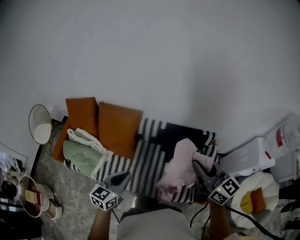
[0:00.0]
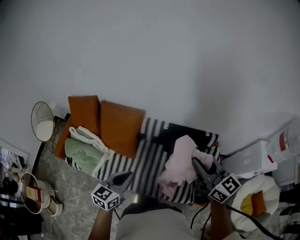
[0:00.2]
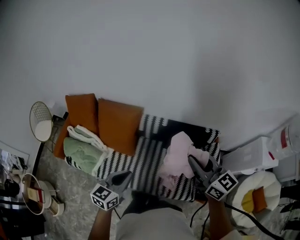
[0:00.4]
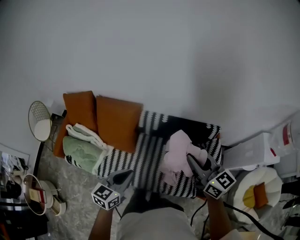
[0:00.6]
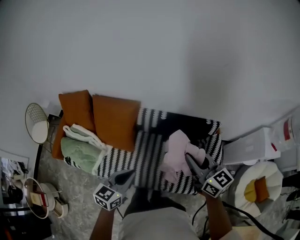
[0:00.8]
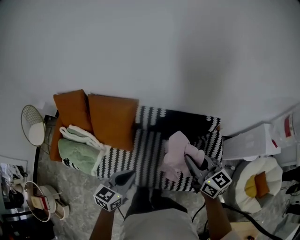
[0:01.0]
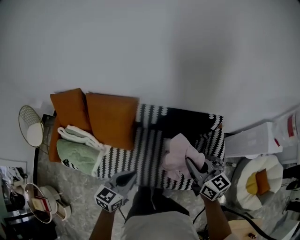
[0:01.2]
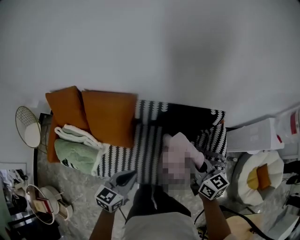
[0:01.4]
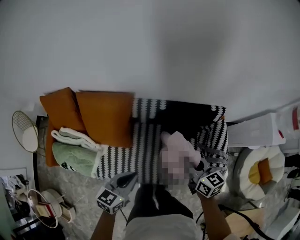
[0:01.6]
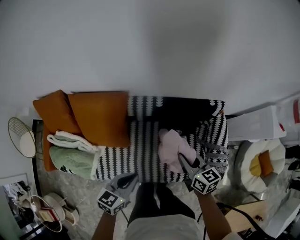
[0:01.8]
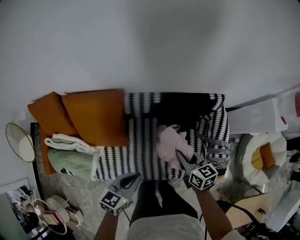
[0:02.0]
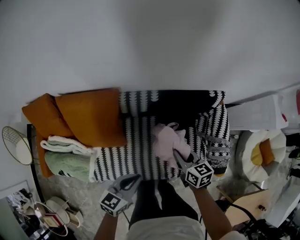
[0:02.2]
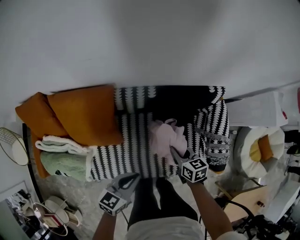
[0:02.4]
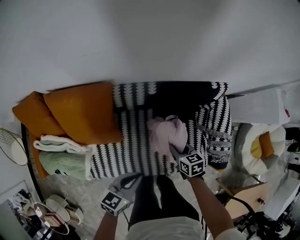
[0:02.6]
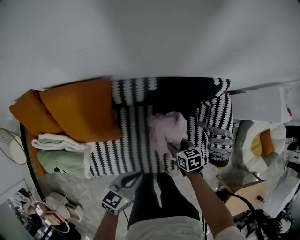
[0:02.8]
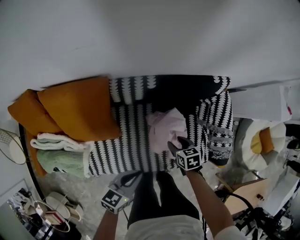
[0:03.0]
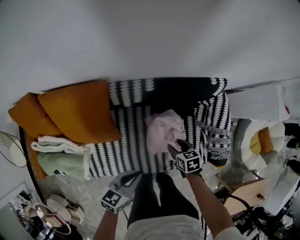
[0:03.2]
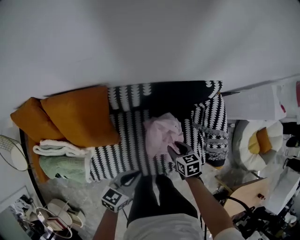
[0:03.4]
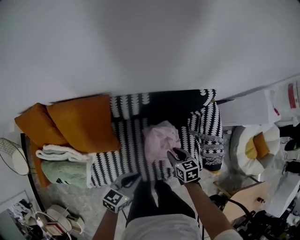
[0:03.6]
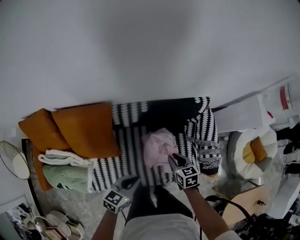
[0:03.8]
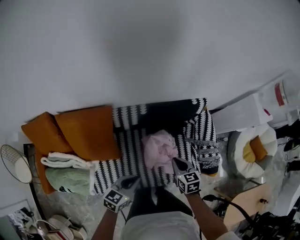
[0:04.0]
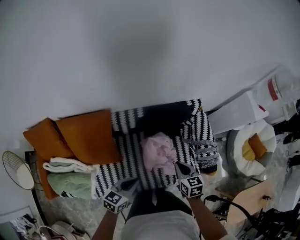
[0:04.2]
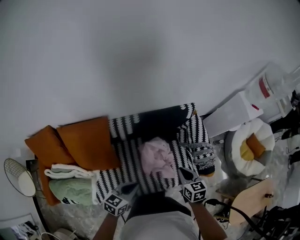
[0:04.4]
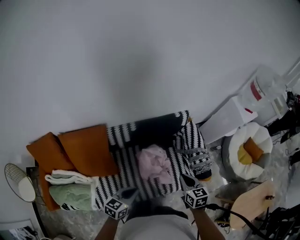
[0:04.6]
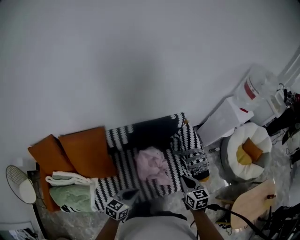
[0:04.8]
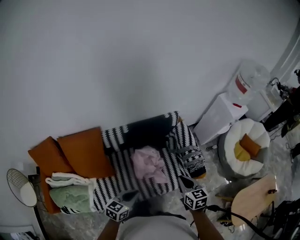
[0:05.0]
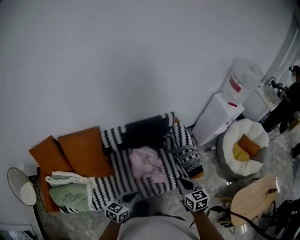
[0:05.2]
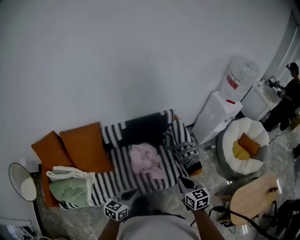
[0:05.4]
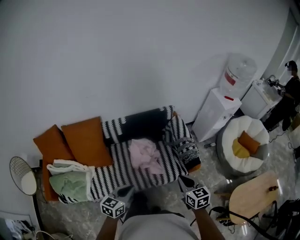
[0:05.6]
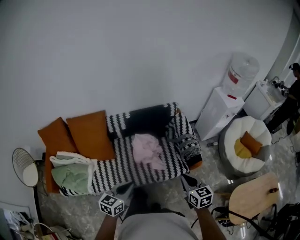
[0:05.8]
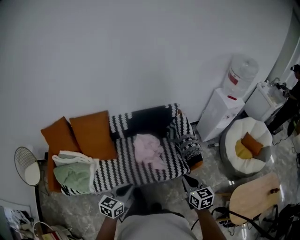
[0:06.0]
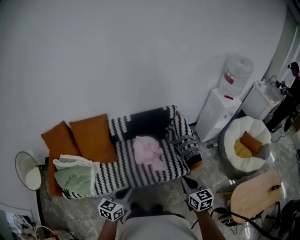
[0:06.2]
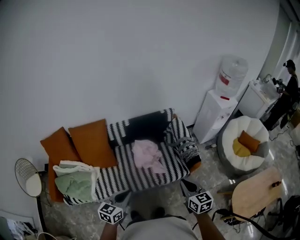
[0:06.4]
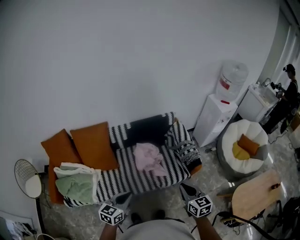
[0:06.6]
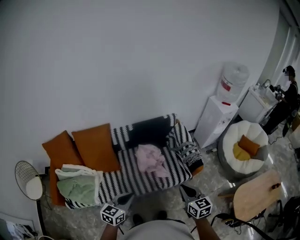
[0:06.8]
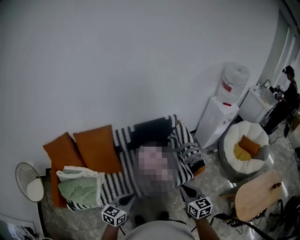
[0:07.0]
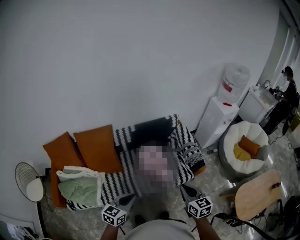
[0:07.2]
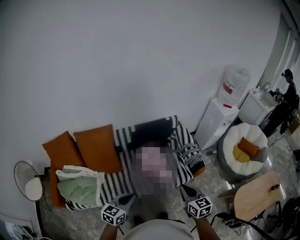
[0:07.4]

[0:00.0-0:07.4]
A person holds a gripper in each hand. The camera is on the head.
0.0 to 1.4 s: The left gripper moves forward and downward, about 15 cm. The right gripper travels downward and forward by some 25 cm, and rotates roughly 30 degrees.
1.4 to 3.0 s: The left gripper heads downward, covering roughly 20 cm. The right gripper travels downward by some 40 cm, tips its fingers downward by about 40 degrees, and opens.
3.0 to 4.4 s: The right gripper heads upward, covering about 30 cm, turns by about 30 degrees, and closes. The left gripper travels upward and backward by some 15 cm.
4.4 to 6.0 s: Both grippers move backward, to the right and upward, some 40 cm.
6.0 to 7.4 s: Both grippers move to the left, approximately 10 cm.

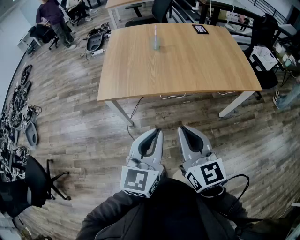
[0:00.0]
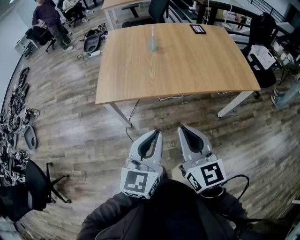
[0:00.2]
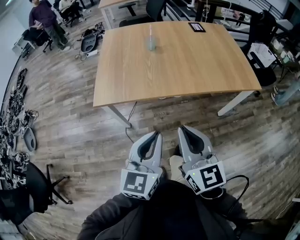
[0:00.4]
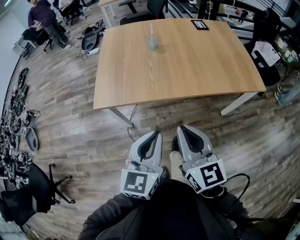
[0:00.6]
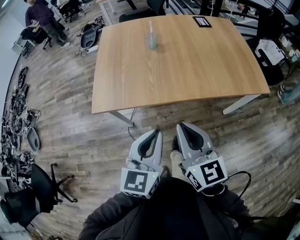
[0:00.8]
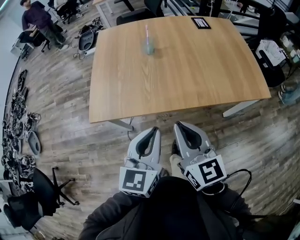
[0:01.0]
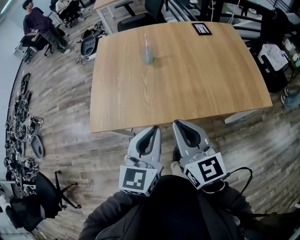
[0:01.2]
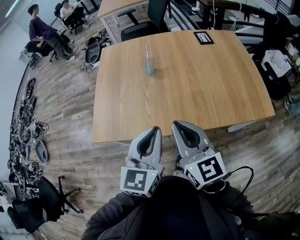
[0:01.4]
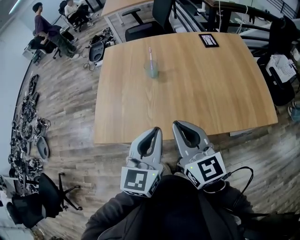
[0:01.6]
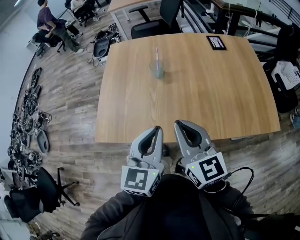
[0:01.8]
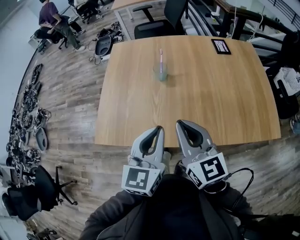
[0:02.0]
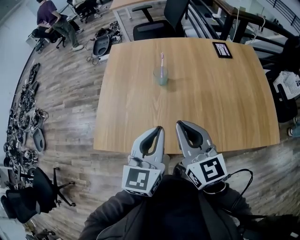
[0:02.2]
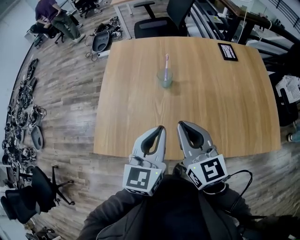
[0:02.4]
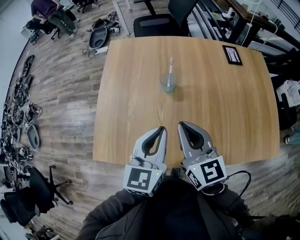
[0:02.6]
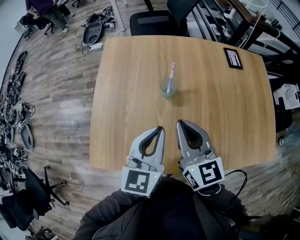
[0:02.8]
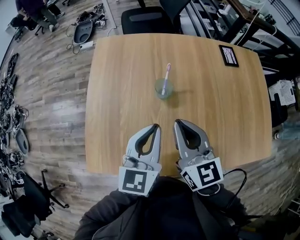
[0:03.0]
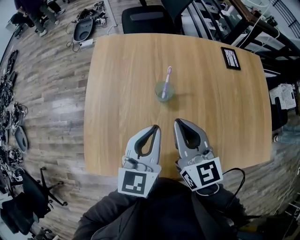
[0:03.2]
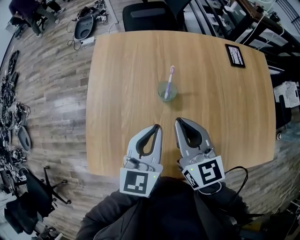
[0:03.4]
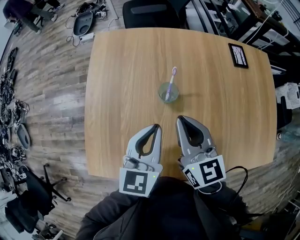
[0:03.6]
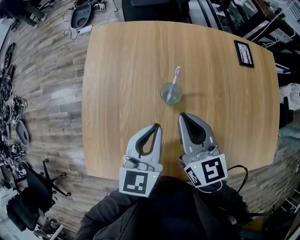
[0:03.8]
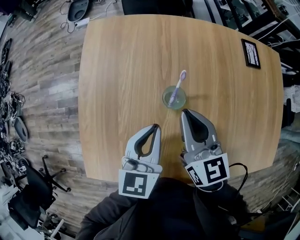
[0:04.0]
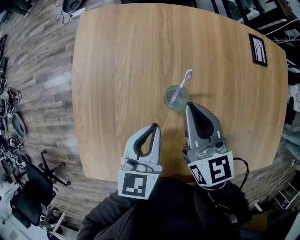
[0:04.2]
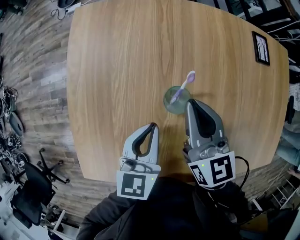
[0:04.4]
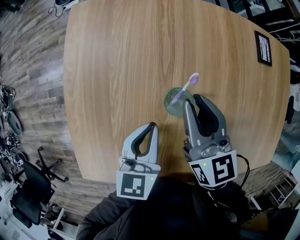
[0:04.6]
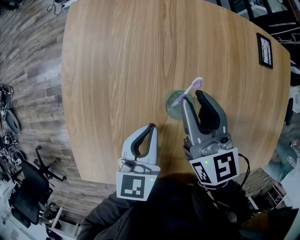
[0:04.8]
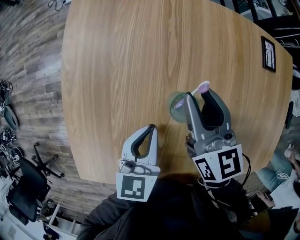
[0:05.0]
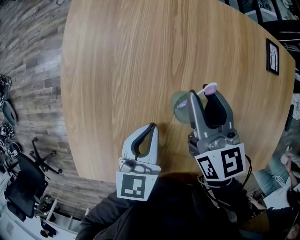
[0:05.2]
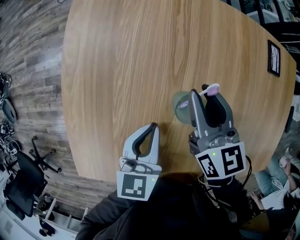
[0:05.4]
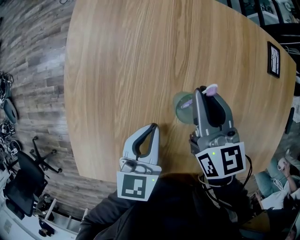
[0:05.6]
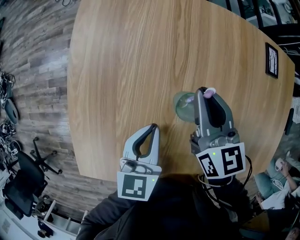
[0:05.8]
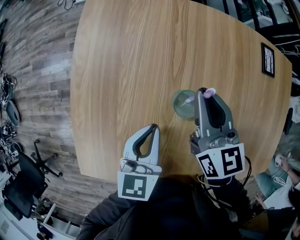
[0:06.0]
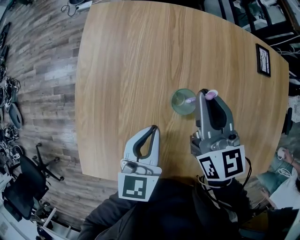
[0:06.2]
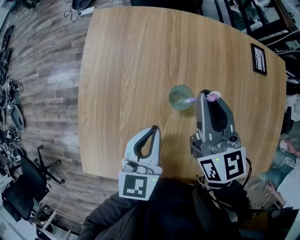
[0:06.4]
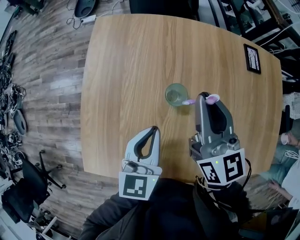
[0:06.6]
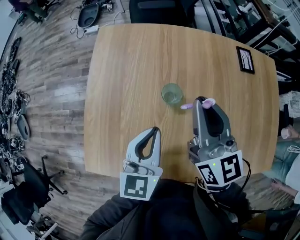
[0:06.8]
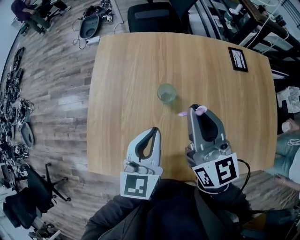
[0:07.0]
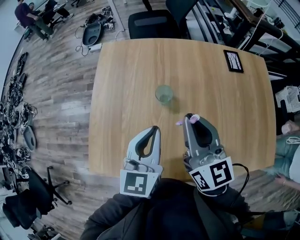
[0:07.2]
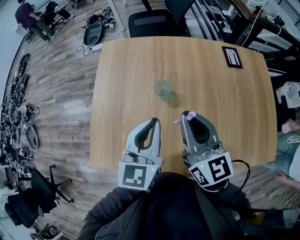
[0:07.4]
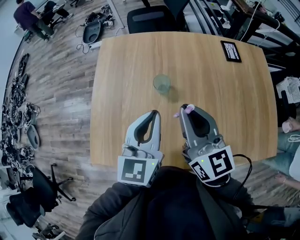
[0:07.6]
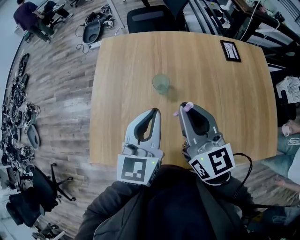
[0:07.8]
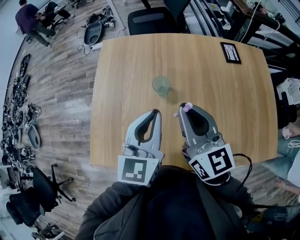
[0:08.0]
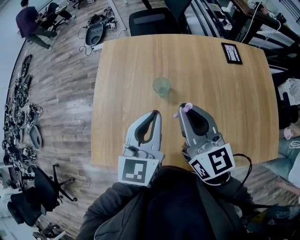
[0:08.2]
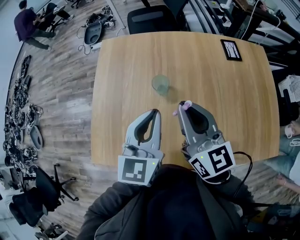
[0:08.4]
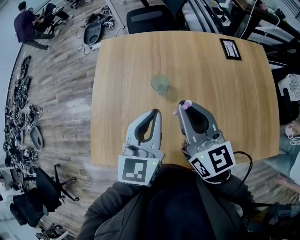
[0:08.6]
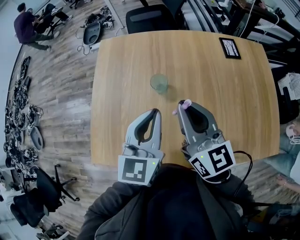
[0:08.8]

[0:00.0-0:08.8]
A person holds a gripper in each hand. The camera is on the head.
0.0 to 1.4 s: The grippers both shift forward by approximately 25 cm.
1.4 to 3.0 s: The grippers both shift forward by about 25 cm.
3.0 to 4.4 s: The right gripper shifts roughly 20 cm forward and downward. Meanwhile the left gripper heads downward and forward, covering about 15 cm.
4.4 to 5.8 s: The right gripper changes place by some 5 cm, and opens and closes again.
5.8 to 7.4 s: The right gripper heads backward and upward, covering roughly 25 cm, and turns by roughly 20 degrees, while the left gripper moves upward and backward, roughly 20 cm, and rotates approximately 20 degrees.
7.4 to 8.8 s: The grippers make only small movements.

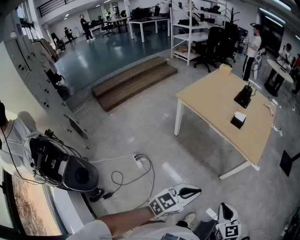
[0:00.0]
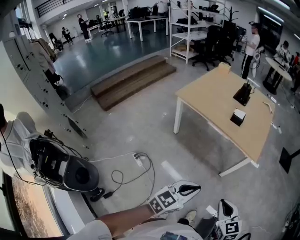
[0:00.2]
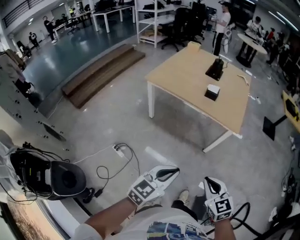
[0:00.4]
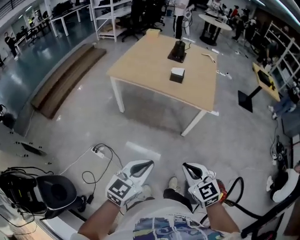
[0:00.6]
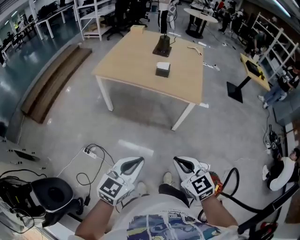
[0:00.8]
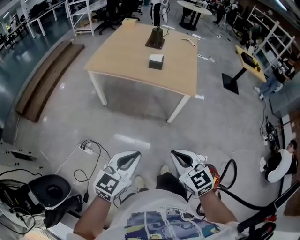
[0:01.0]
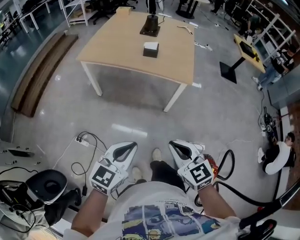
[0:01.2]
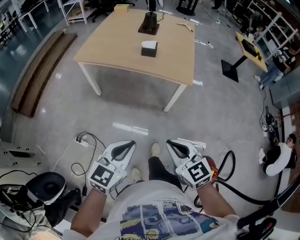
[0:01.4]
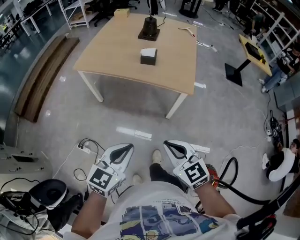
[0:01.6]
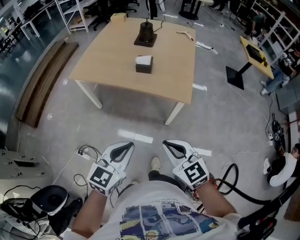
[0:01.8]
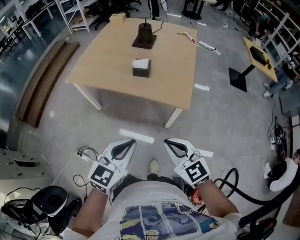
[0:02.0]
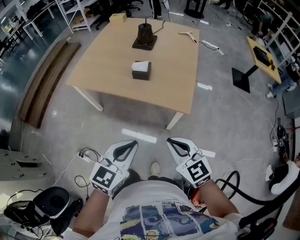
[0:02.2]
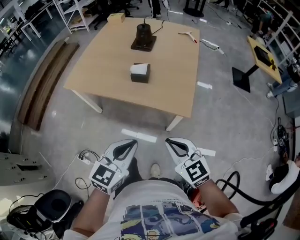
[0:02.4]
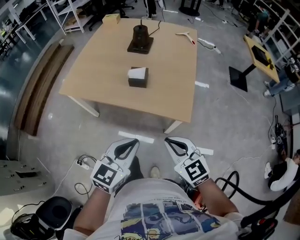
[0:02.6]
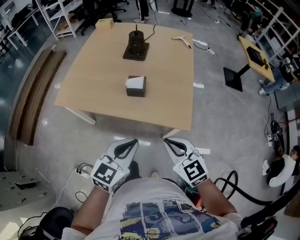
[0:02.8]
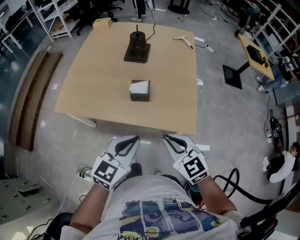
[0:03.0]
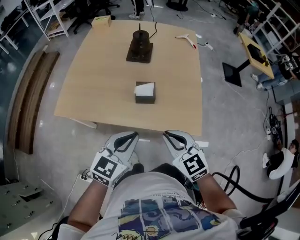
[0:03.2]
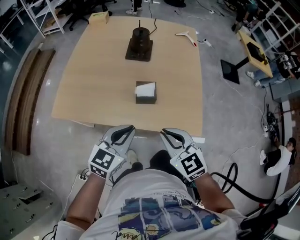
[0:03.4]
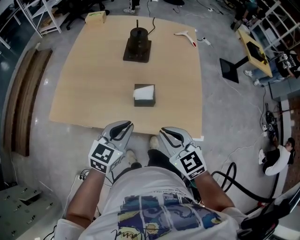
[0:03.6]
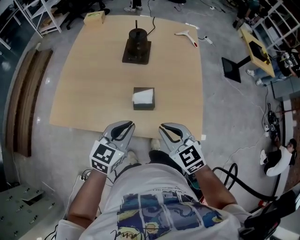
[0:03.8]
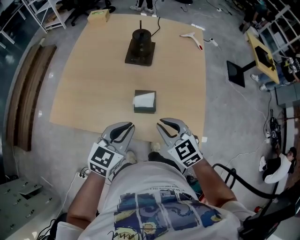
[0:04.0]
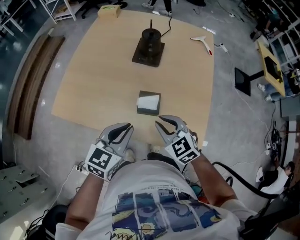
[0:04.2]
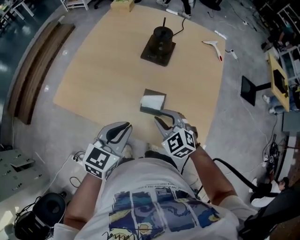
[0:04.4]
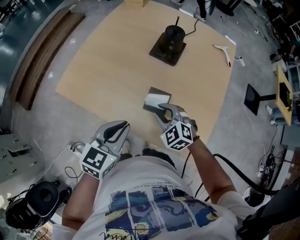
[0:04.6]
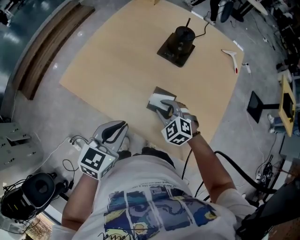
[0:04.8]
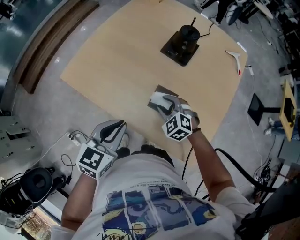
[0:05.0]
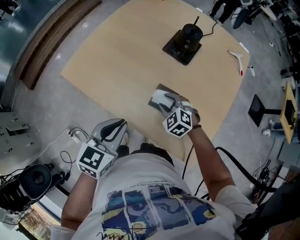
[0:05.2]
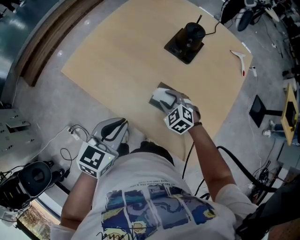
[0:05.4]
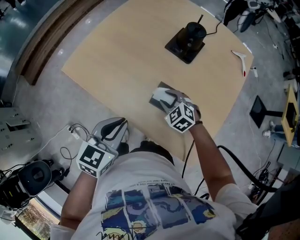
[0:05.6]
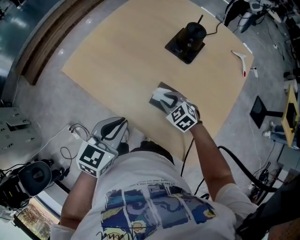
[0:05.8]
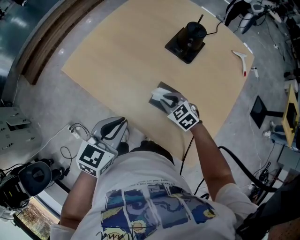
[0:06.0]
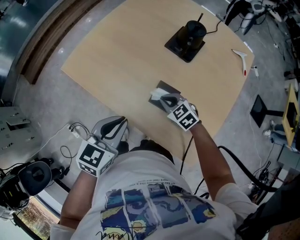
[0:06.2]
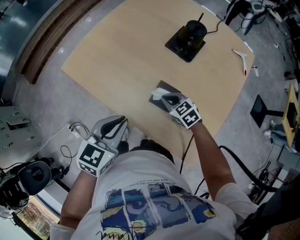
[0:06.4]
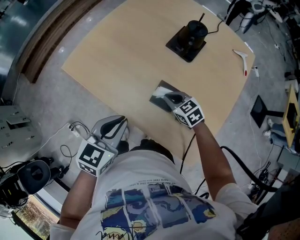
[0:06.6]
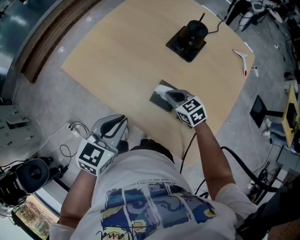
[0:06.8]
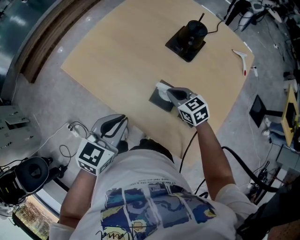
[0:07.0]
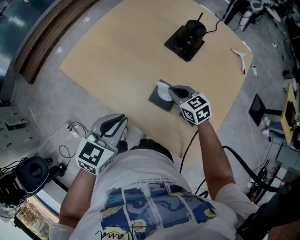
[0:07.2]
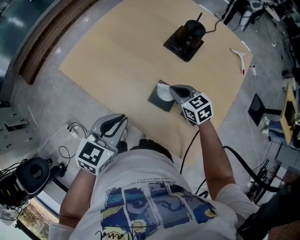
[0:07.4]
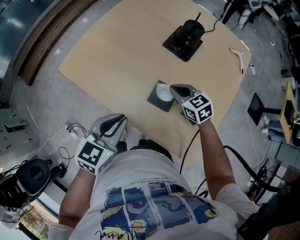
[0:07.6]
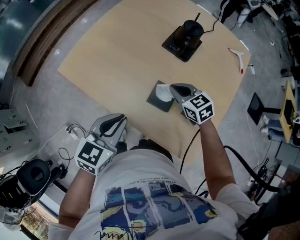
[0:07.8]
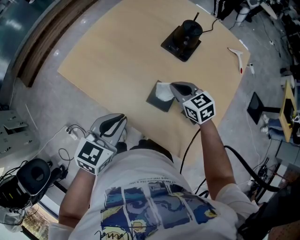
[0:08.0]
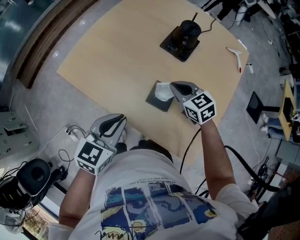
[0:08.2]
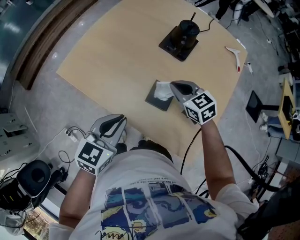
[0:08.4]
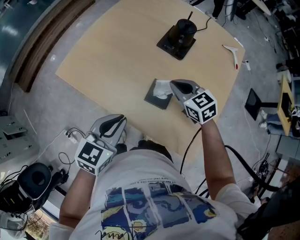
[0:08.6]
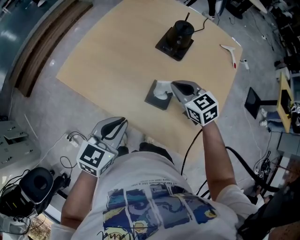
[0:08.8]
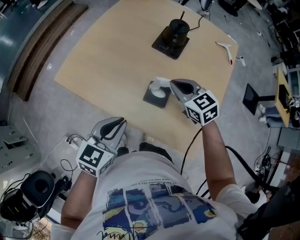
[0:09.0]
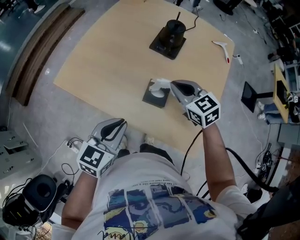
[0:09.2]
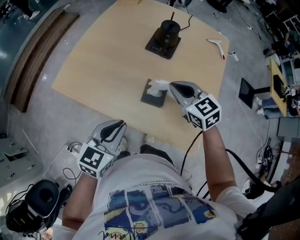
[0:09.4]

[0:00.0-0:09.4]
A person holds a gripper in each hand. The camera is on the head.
0.0 to 1.6 s: The two grippers go roughly 10 cm forward.
1.6 to 3.2 s: Both grippers move forward, some 40 cm.
3.2 to 4.8 s: The right gripper travels forward and downward by roughly 30 cm, rotates approximately 40 degrees, and opens up. Meanwhile the left gripper moves forward and downward, roughly 15 cm, and turns by about 30 degrees.
4.8 to 6.2 s: The right gripper changes place by about 5 cm, turns by approximately 20 degrees, and closes its fingers.
6.2 to 7.8 s: The right gripper moves upward, approximately 5 cm.
7.8 to 9.4 s: The right gripper goes approximately 10 cm upward.
